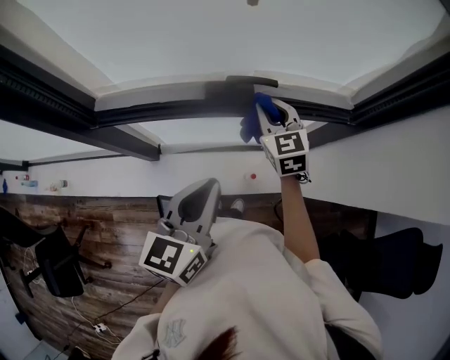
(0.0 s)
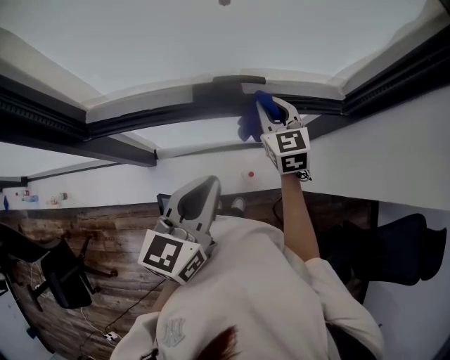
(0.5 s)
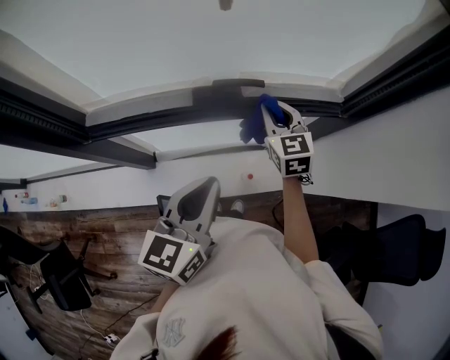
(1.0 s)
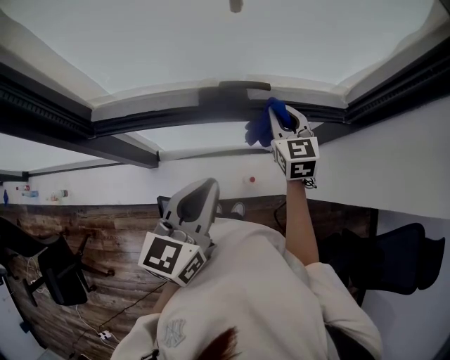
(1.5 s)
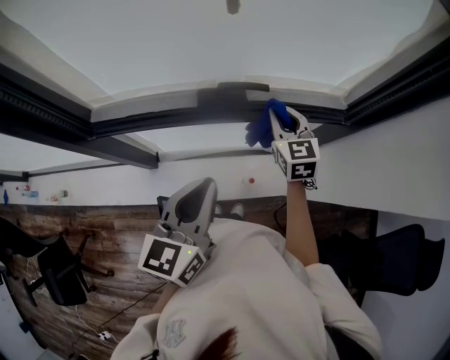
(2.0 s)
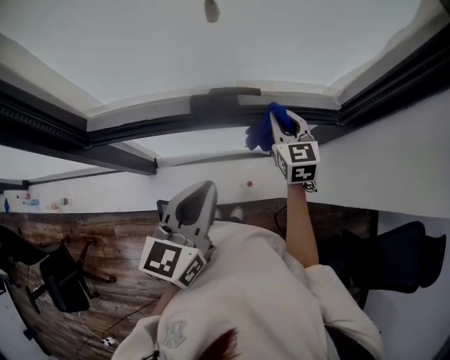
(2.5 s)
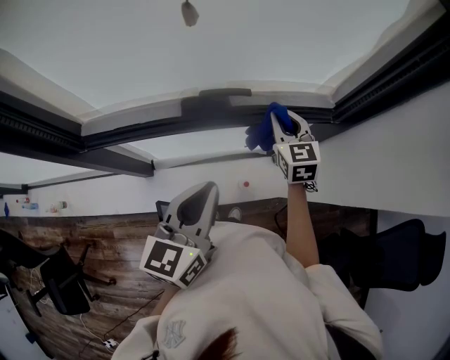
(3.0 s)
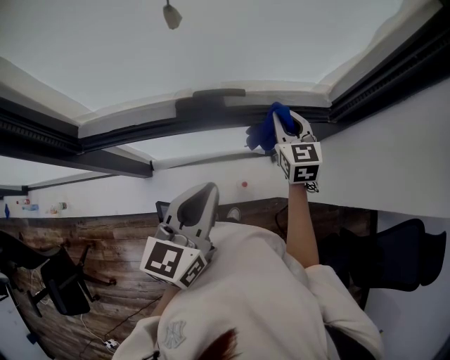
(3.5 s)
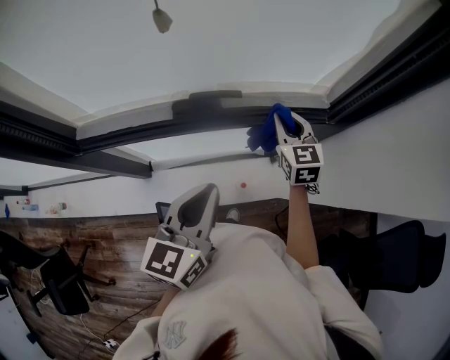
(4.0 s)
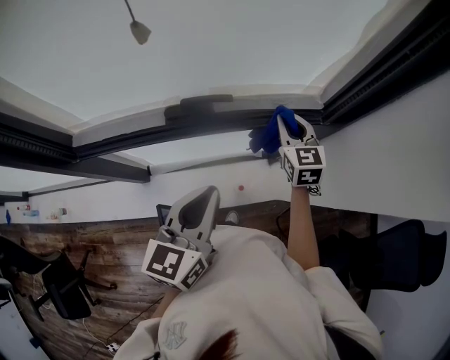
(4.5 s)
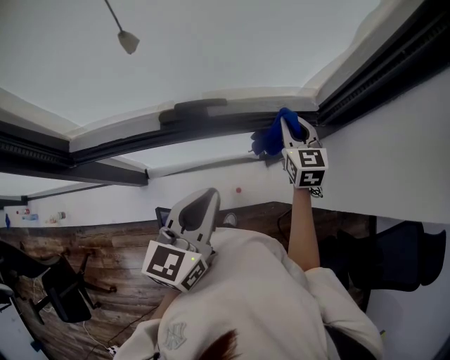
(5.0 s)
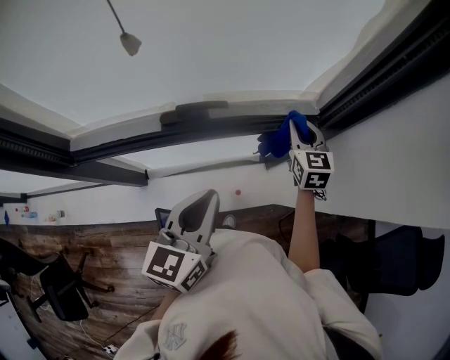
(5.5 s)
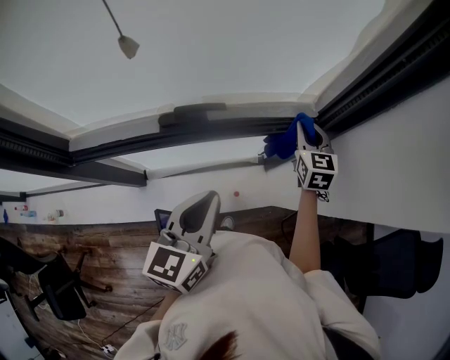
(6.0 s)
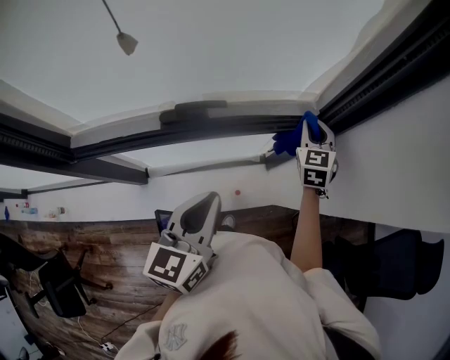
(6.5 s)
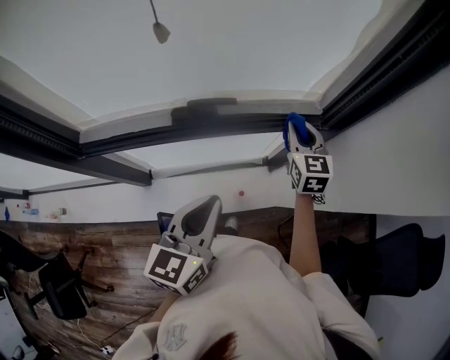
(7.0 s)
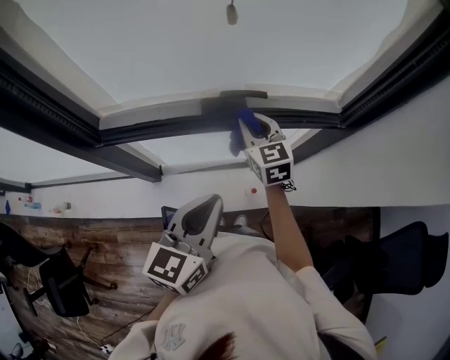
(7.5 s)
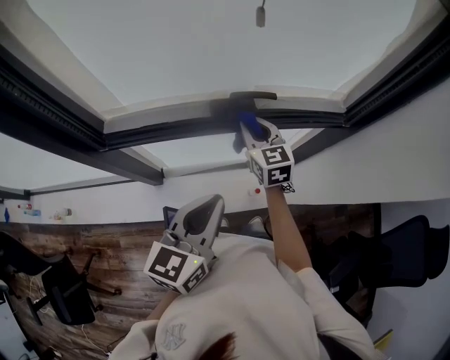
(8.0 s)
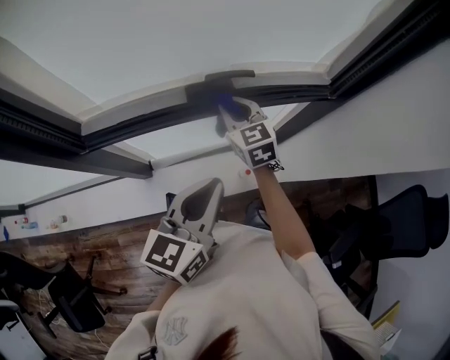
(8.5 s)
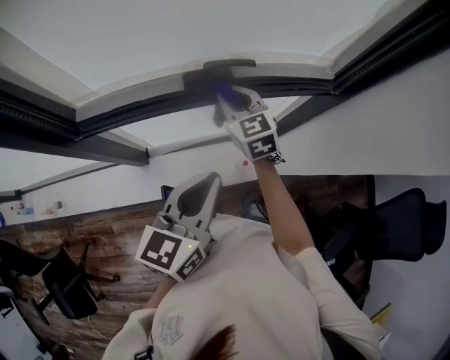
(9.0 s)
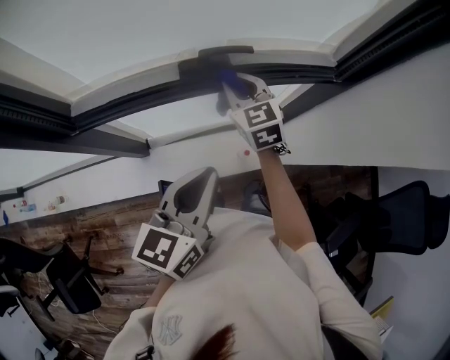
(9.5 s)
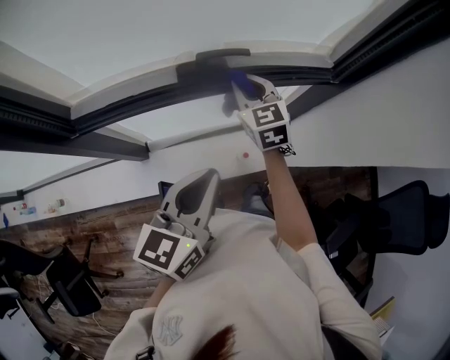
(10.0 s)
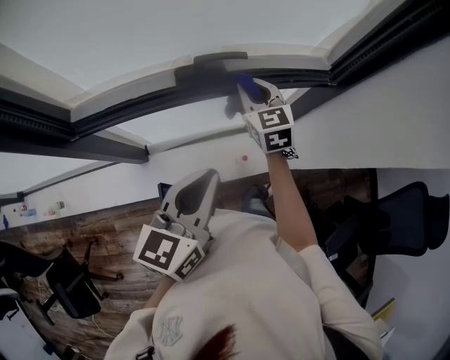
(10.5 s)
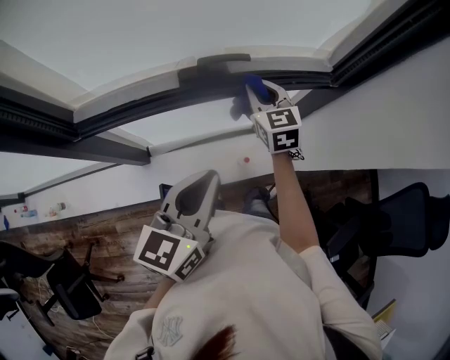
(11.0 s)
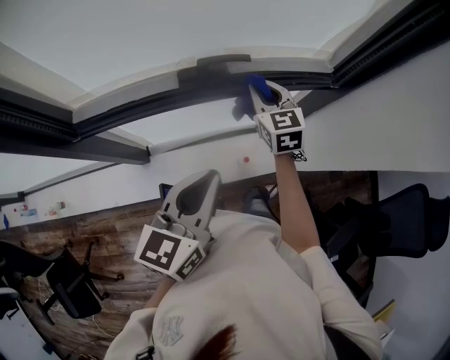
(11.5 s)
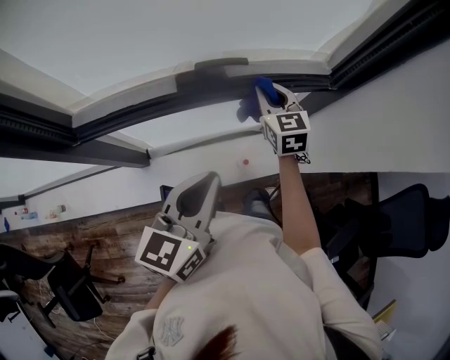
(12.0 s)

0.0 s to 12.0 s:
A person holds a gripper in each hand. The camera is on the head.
0.0 to 2.0 s: The right gripper goes some 5 cm to the right.
2.0 to 4.0 s: Both grippers move to the right, approximately 5 cm.
4.0 to 6.0 s: The right gripper heads to the right, covering about 10 cm.
6.0 to 8.0 s: The right gripper is displaced to the left by roughly 30 cm, and turns by some 20 degrees. Meanwhile the left gripper goes about 15 cm to the left and backward.
8.0 to 10.0 s: The grippers move only a little.
10.0 to 12.0 s: The right gripper shifts about 5 cm to the right.

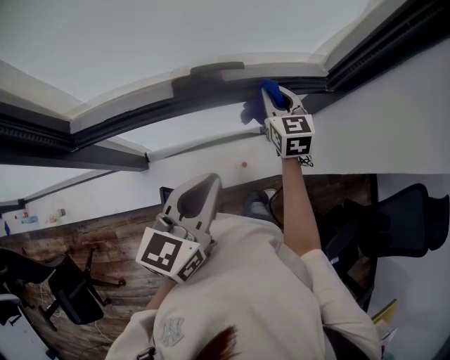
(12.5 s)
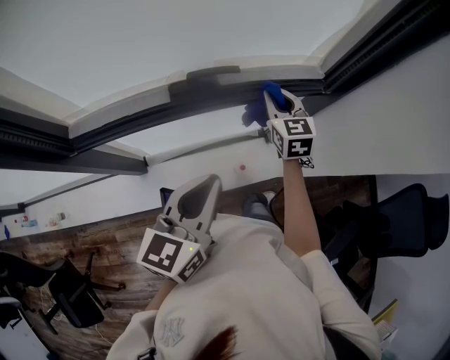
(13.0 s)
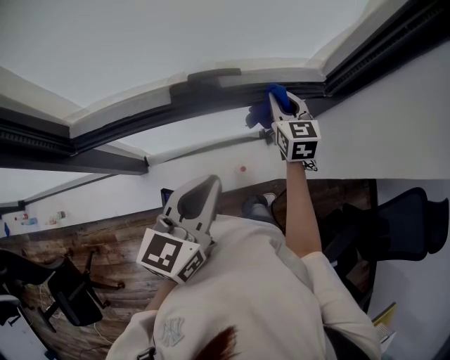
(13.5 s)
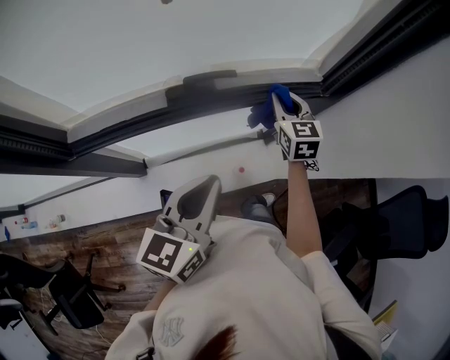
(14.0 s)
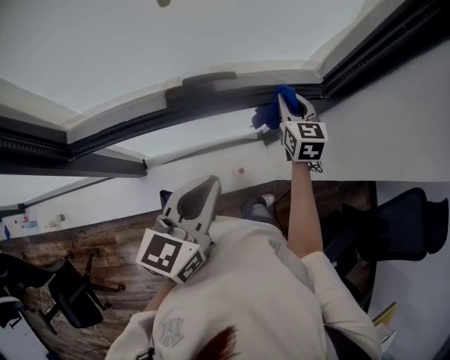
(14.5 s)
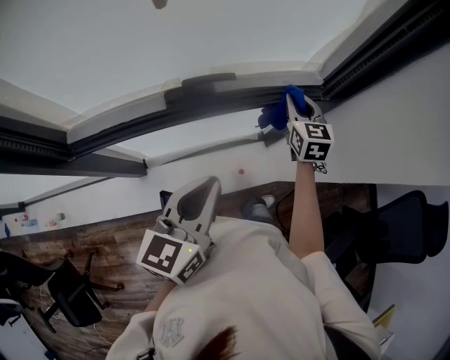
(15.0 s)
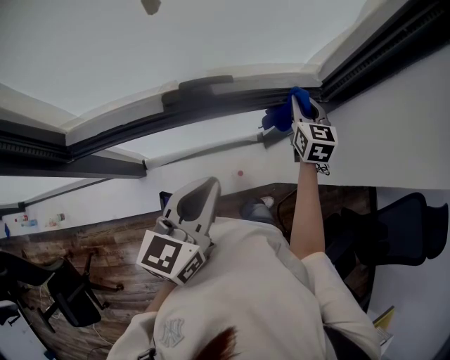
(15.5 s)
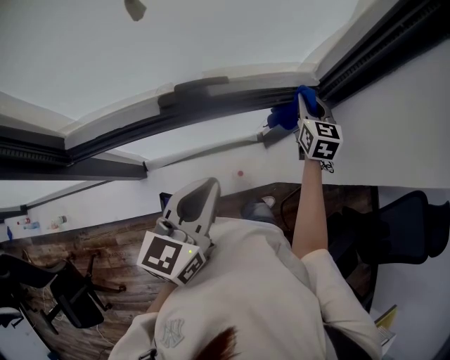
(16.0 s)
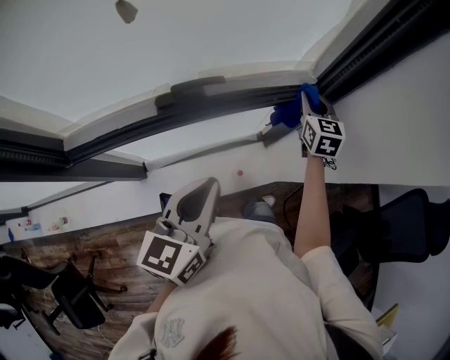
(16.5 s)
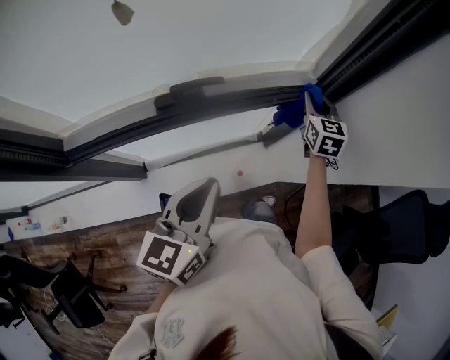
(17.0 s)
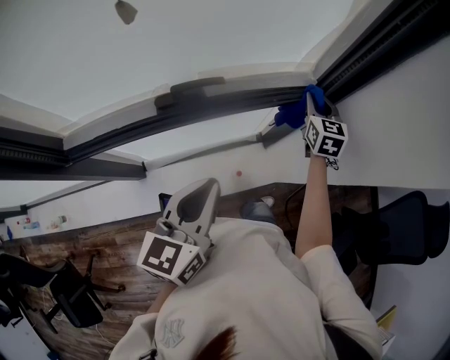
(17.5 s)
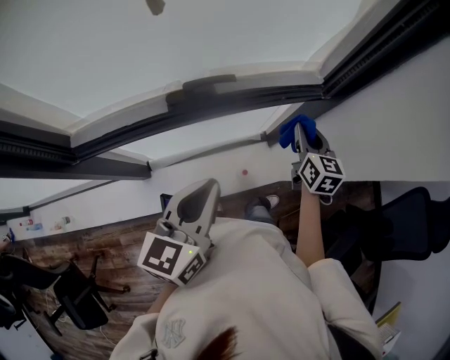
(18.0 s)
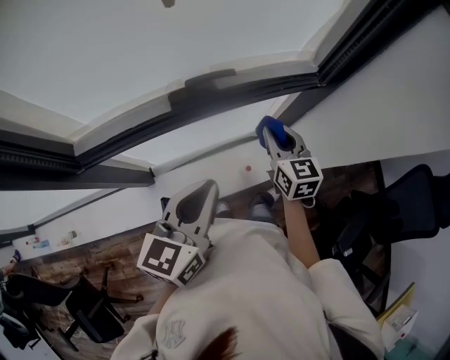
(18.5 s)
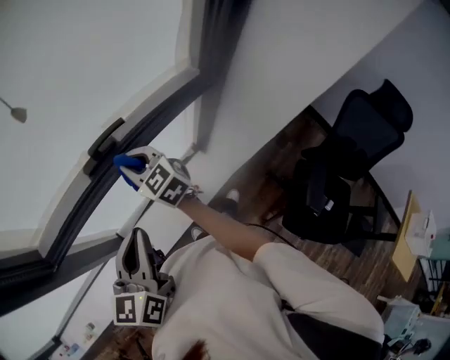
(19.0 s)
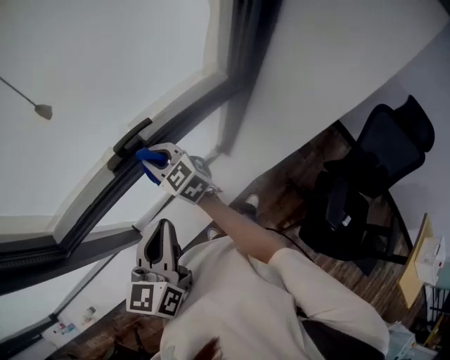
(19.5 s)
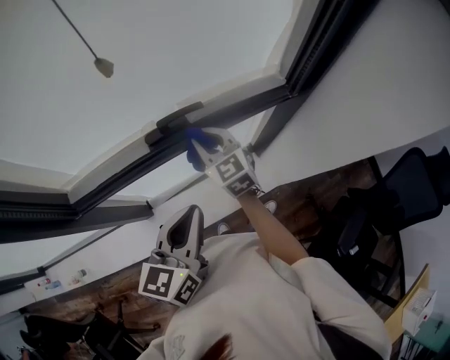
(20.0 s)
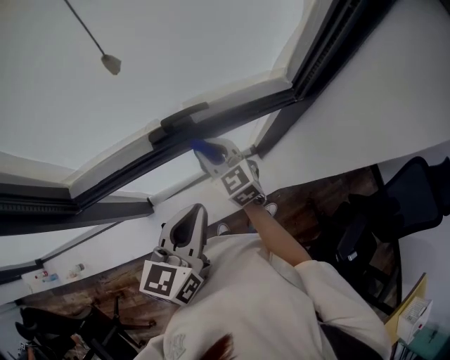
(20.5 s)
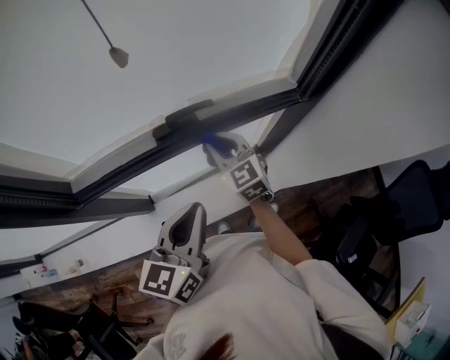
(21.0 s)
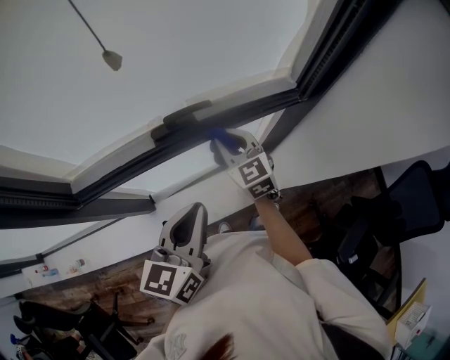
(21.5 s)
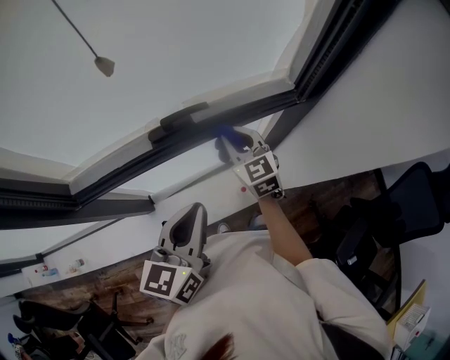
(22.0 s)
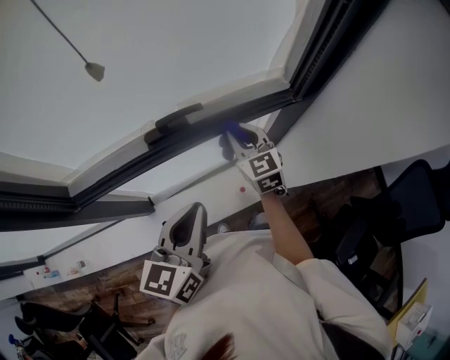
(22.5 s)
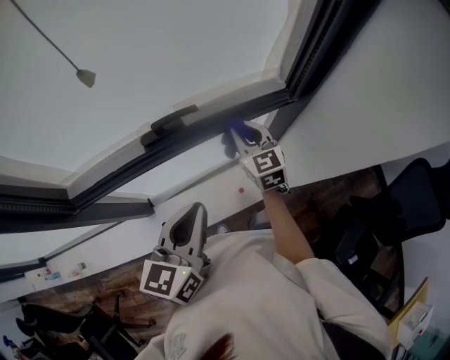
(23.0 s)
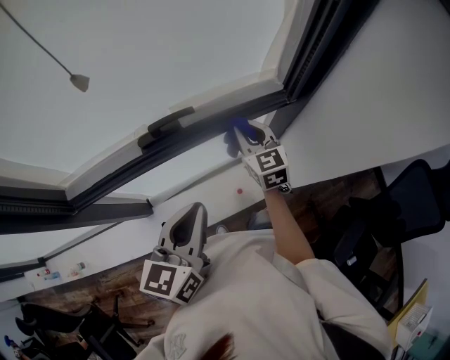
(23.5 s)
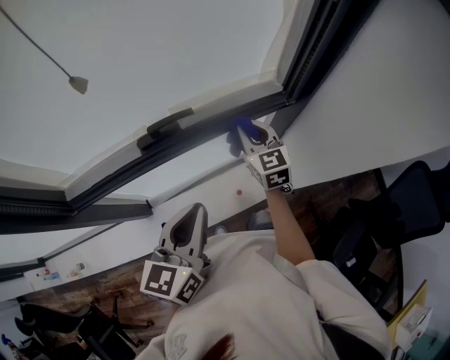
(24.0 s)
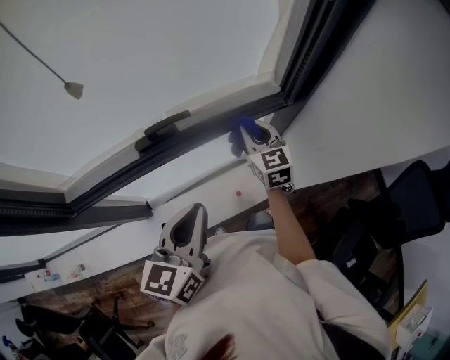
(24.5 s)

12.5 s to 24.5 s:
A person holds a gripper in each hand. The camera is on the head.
12.5 to 14.5 s: The right gripper goes approximately 5 cm to the right.
14.5 to 16.5 s: The right gripper is displaced to the right by some 10 cm.
16.5 to 18.5 s: The right gripper moves backward and to the left, some 20 cm. Meanwhile the left gripper moves approximately 5 cm.
18.5 to 20.5 s: The right gripper is displaced to the left by some 15 cm, and changes its angle by some 30 degrees.
20.5 to 22.5 s: The right gripper moves to the right, approximately 10 cm.
22.5 to 24.5 s: The right gripper goes some 5 cm to the right.

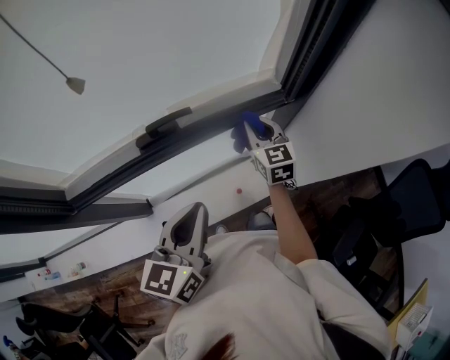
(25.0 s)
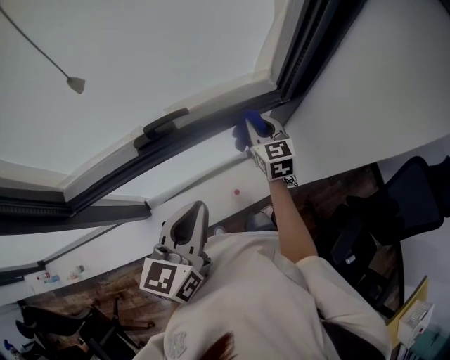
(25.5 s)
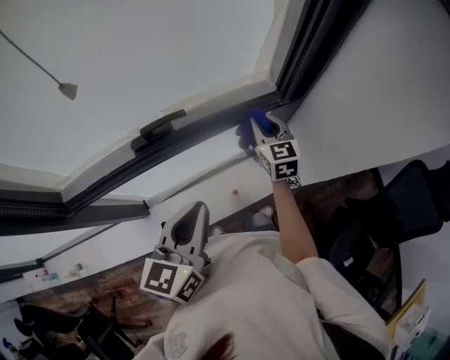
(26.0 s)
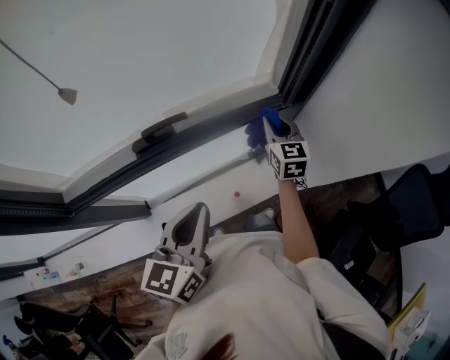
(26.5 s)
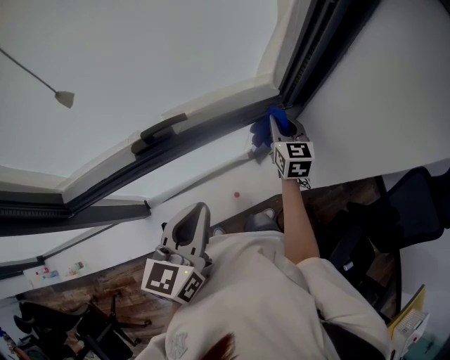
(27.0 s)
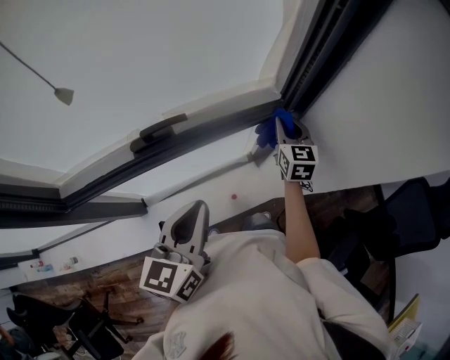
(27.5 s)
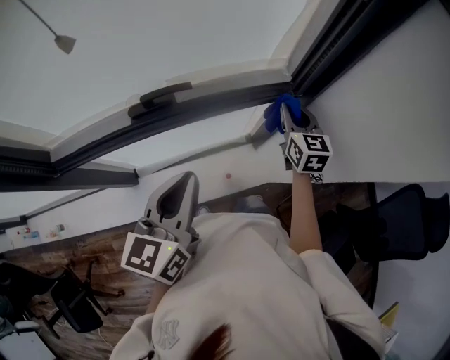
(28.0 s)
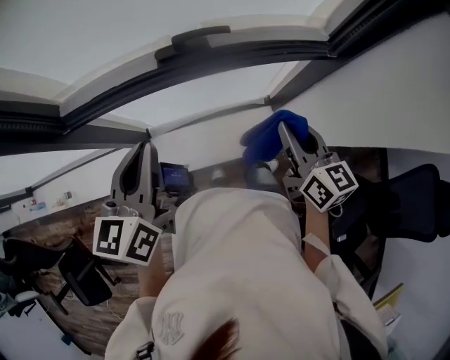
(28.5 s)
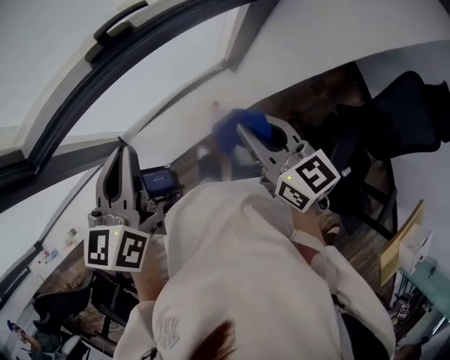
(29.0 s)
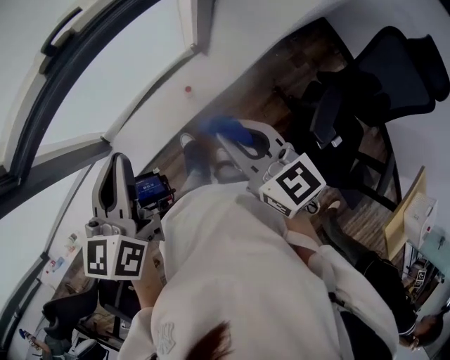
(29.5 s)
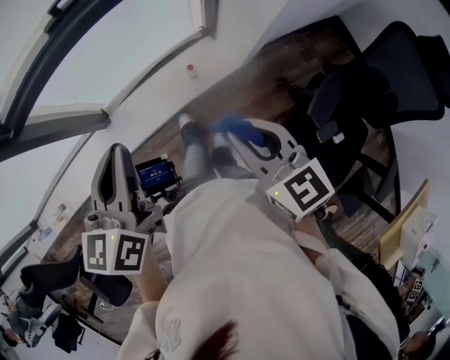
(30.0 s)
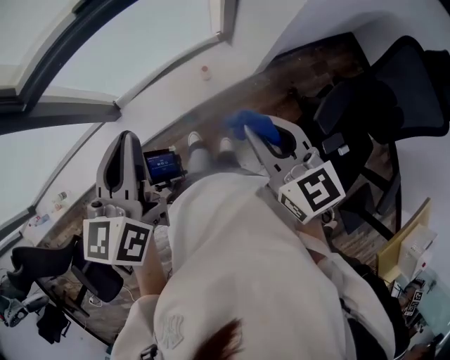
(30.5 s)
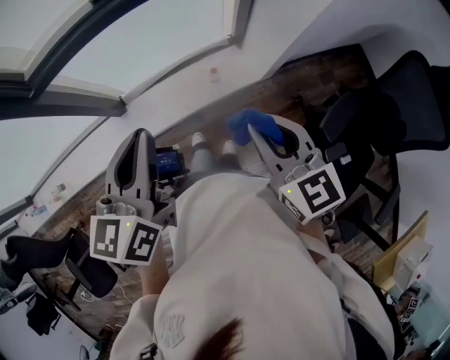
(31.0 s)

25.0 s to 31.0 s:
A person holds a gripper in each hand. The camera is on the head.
25.0 to 27.0 s: The right gripper is displaced to the right by approximately 10 cm.
27.0 to 29.0 s: The left gripper moves to the left and backward, some 15 cm, while the right gripper moves backward and to the left, about 35 cm, and swivels about 30 degrees.
29.0 to 31.0 s: Both grippers travel together backward, roughly 20 cm.
